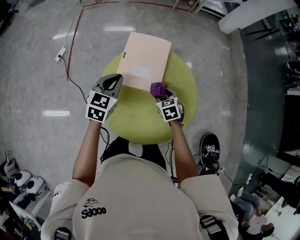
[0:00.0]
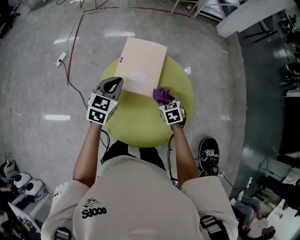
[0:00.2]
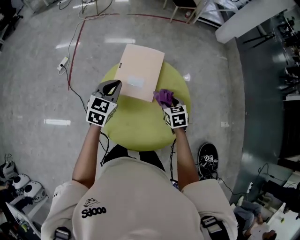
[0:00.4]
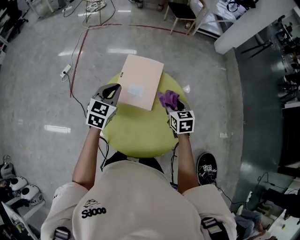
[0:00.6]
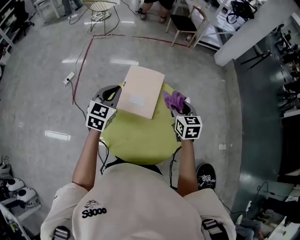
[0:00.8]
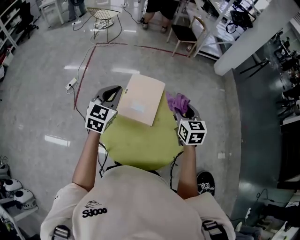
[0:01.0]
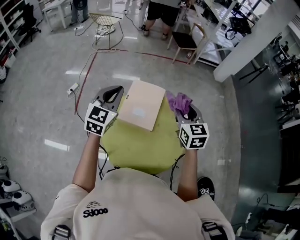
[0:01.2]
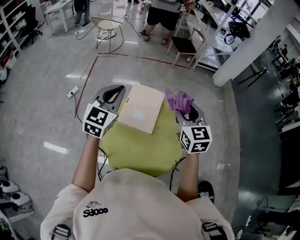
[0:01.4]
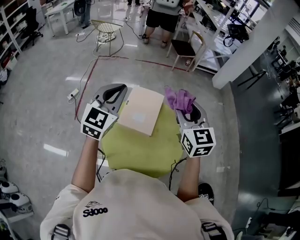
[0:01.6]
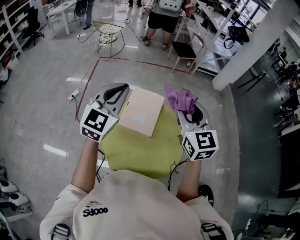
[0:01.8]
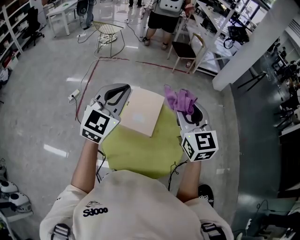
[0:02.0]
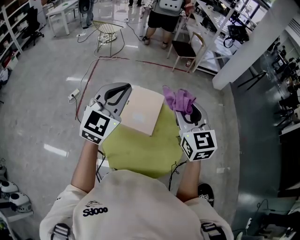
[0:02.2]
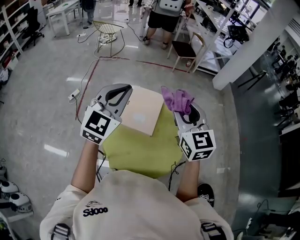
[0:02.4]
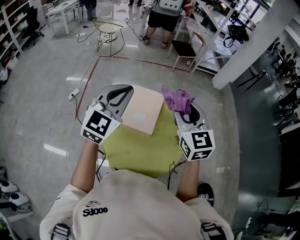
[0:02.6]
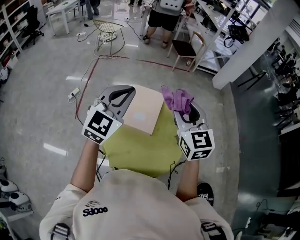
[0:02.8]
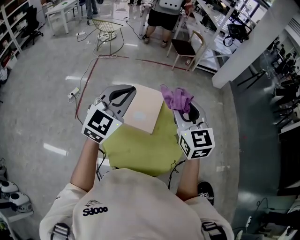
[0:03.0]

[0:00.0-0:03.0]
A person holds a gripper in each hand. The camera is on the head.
0:00.0 to 0:01.6: The right gripper goes some 40 cm upward, and points its fingers about 40 degrees further upward. Meanwhile the left gripper shifts about 25 cm upward, and swivels about 30 degrees.
0:01.6 to 0:03.0: The left gripper shifts by roughly 5 cm.

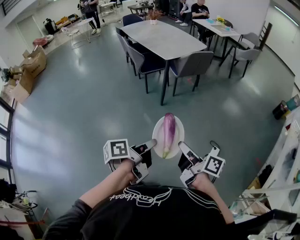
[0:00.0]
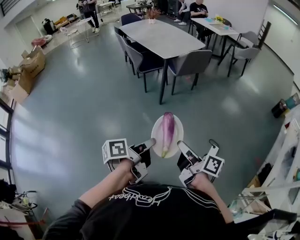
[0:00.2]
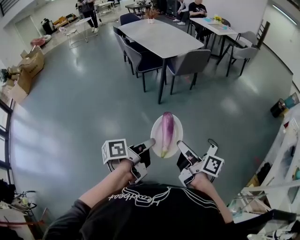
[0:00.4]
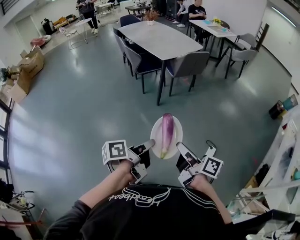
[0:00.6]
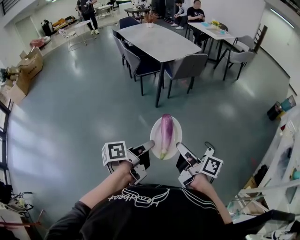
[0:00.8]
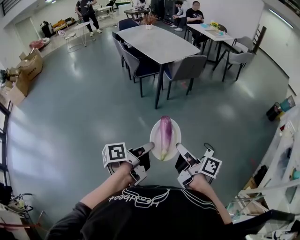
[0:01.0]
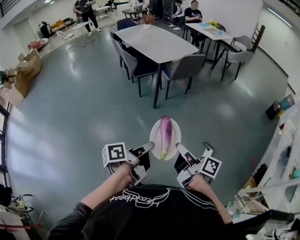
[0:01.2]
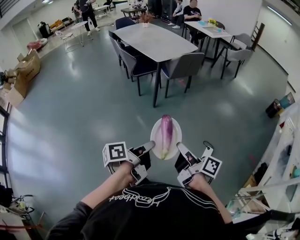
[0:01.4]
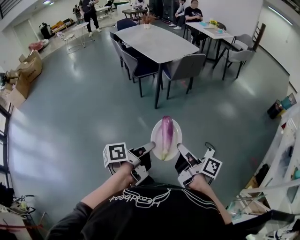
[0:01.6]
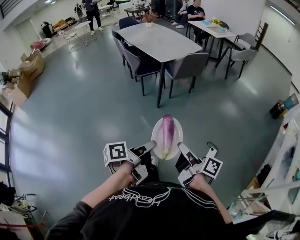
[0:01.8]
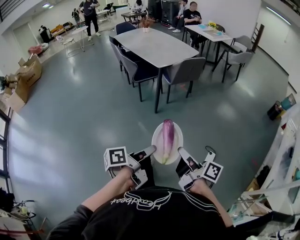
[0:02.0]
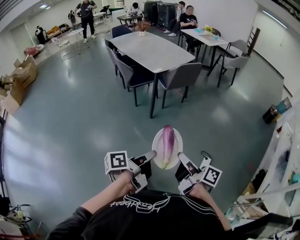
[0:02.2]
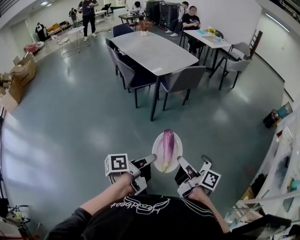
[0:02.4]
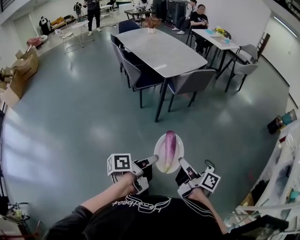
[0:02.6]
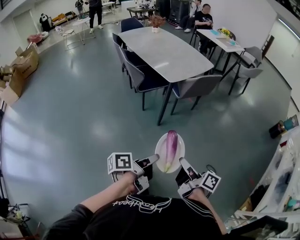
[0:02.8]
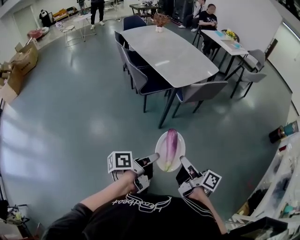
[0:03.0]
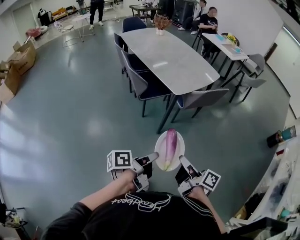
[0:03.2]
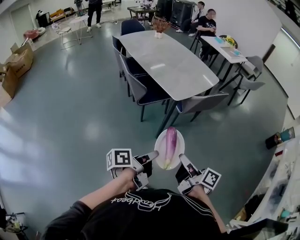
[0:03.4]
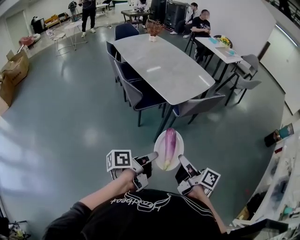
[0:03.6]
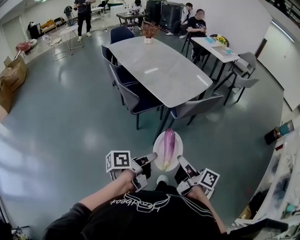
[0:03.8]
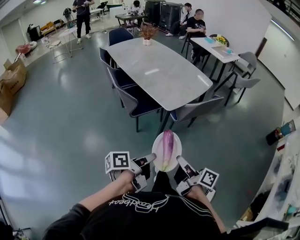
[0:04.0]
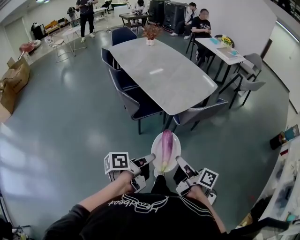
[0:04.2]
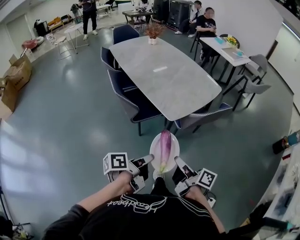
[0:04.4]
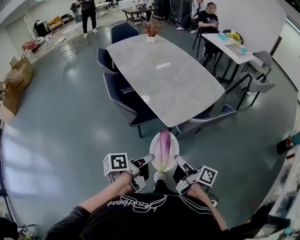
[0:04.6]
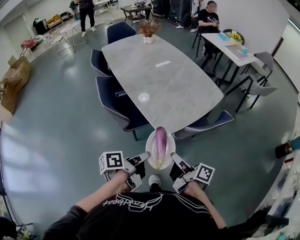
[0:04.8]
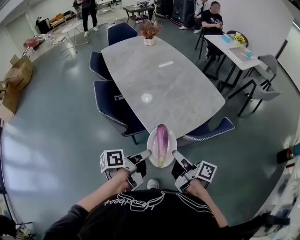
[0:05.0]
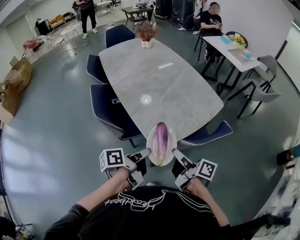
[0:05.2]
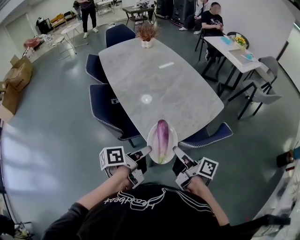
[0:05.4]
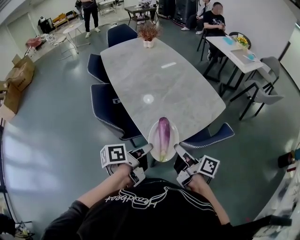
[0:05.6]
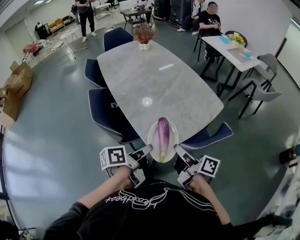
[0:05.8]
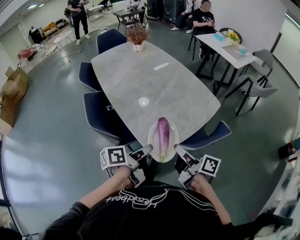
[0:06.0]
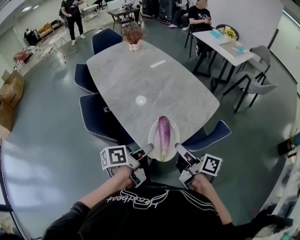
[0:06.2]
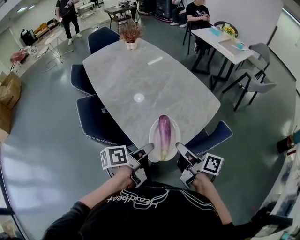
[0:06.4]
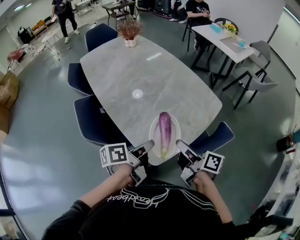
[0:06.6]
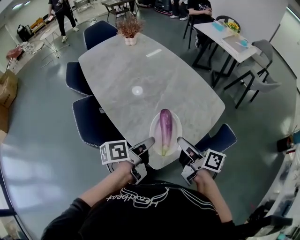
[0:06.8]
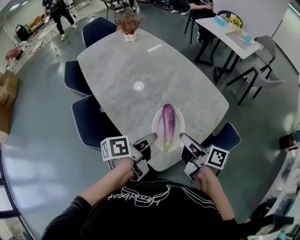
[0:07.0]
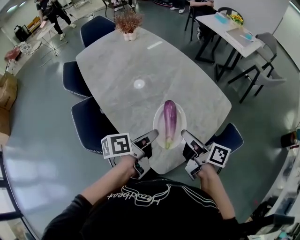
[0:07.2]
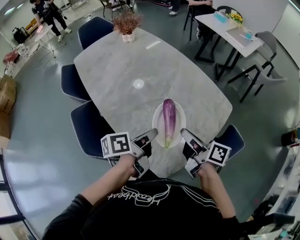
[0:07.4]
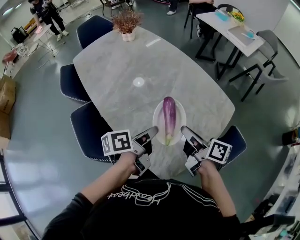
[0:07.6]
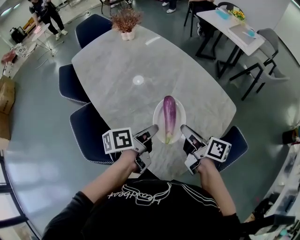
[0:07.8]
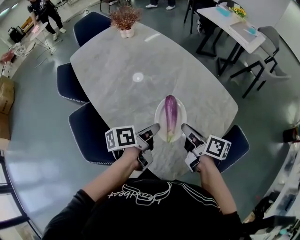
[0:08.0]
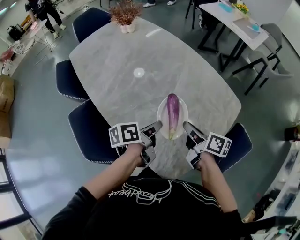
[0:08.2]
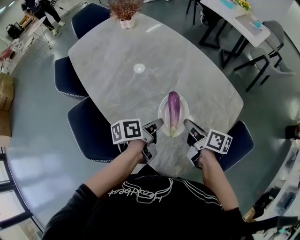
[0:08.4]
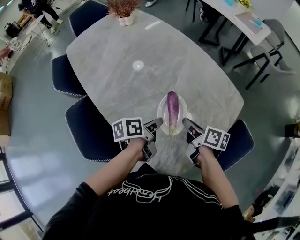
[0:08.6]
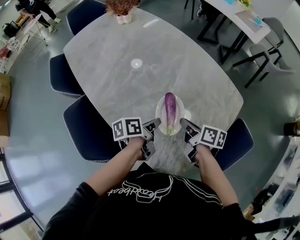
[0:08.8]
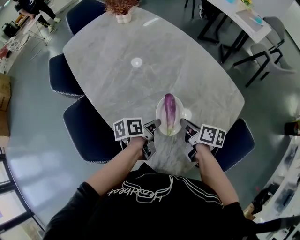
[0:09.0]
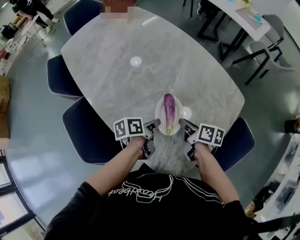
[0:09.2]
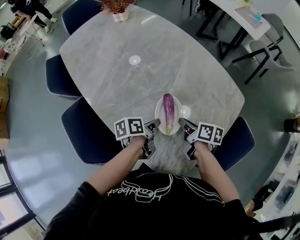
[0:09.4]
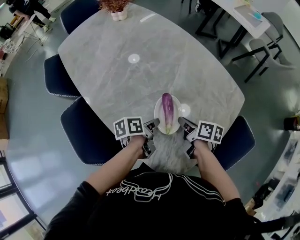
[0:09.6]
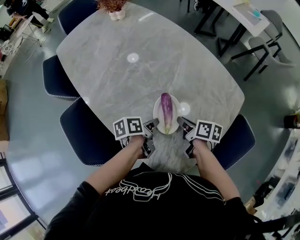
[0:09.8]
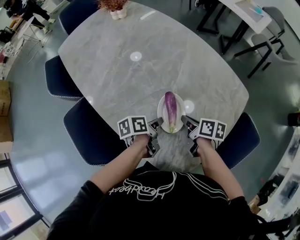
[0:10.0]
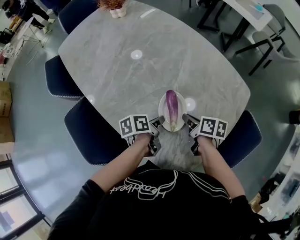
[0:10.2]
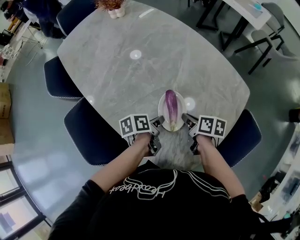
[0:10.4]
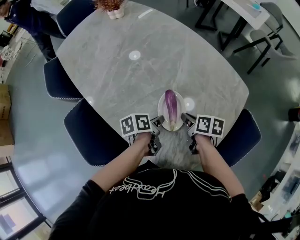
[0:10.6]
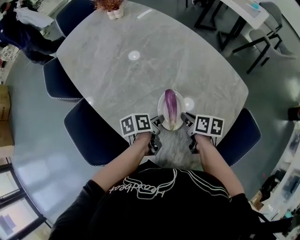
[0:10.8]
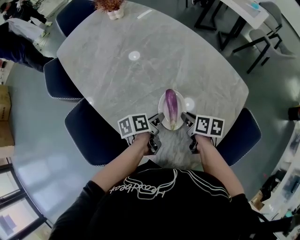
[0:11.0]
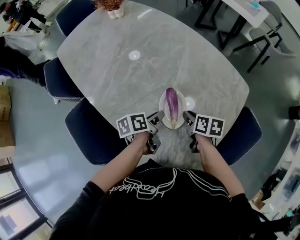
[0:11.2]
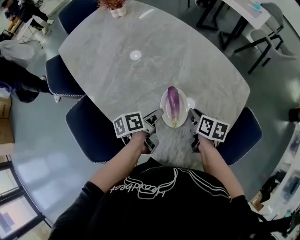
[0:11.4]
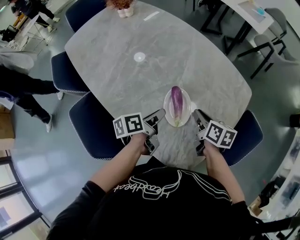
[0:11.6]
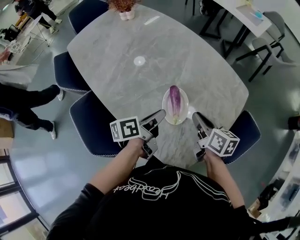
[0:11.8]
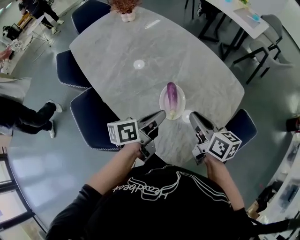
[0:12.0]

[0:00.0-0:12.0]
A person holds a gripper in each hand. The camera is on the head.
0:01.6 to 0:03.0: The right gripper moves roughly 30 cm.
0:03.0 to 0:04.4: The right gripper moves roughly 30 cm.
0:04.4 to 0:06.0: The right gripper changes place by about 30 cm.
0:06.0 to 0:07.6: The right gripper ends up approximately 25 cm from where it was.
0:07.6 to 0:09.0: The right gripper moves downward, about 15 cm, and changes its angle by some 20 degrees.
0:10.4 to 0:12.0: The right gripper heads upward, covering approximately 15 cm, and changes its angle by roughly 30 degrees.

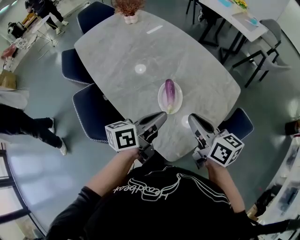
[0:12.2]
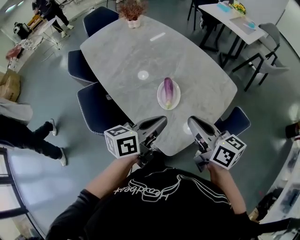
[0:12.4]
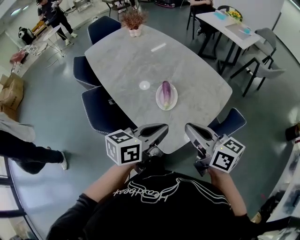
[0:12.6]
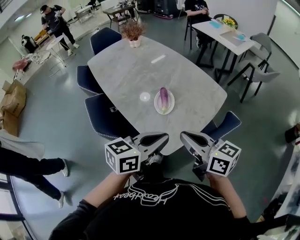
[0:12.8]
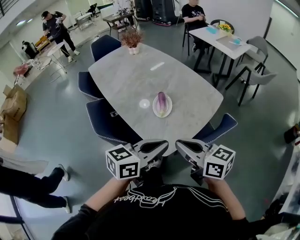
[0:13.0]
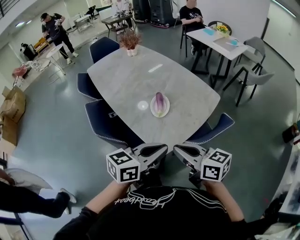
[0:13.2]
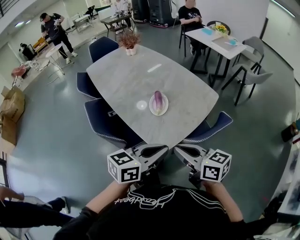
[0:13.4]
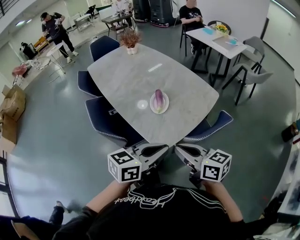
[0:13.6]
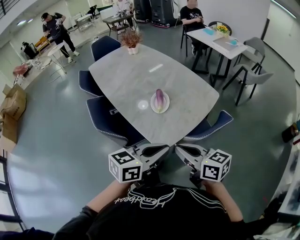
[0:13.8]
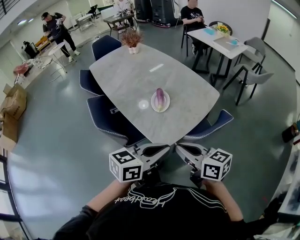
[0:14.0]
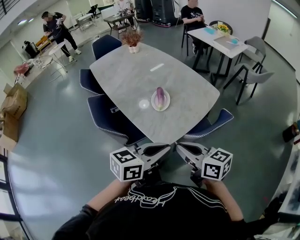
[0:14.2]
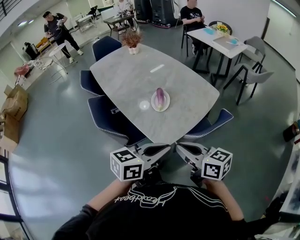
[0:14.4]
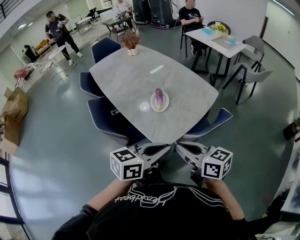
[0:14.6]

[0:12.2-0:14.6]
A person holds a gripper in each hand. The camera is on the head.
0:12.2 to 0:13.4: The right gripper moves some 25 cm.

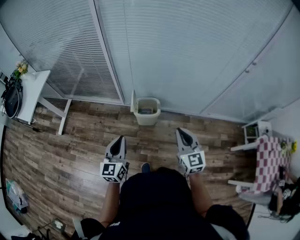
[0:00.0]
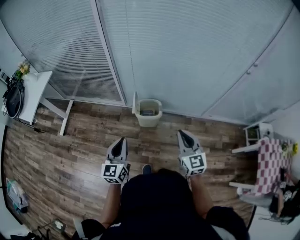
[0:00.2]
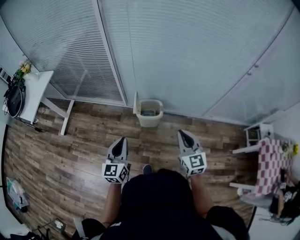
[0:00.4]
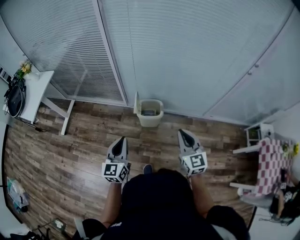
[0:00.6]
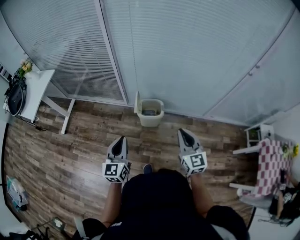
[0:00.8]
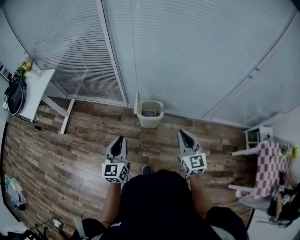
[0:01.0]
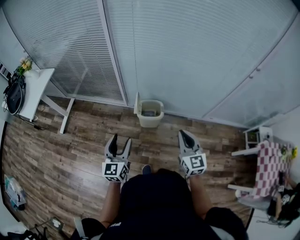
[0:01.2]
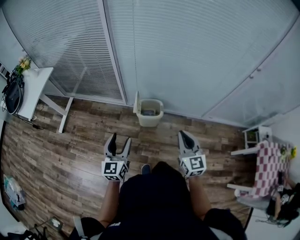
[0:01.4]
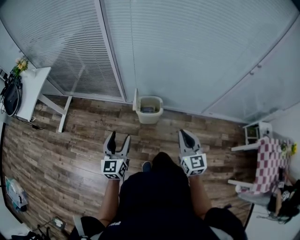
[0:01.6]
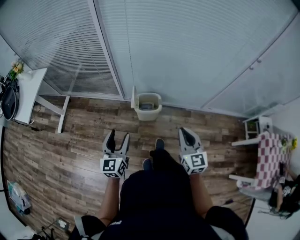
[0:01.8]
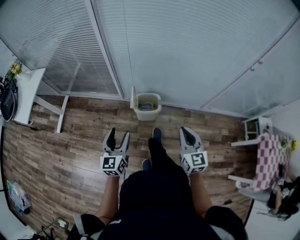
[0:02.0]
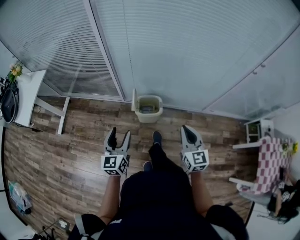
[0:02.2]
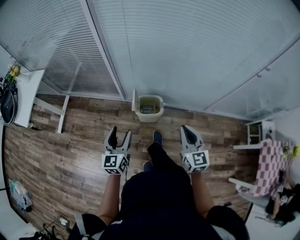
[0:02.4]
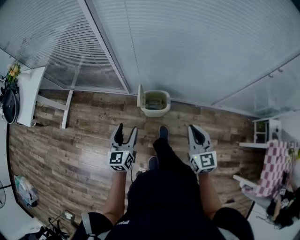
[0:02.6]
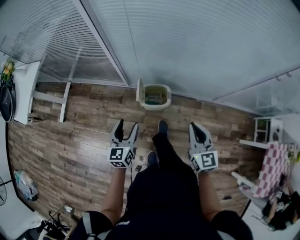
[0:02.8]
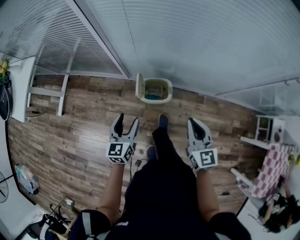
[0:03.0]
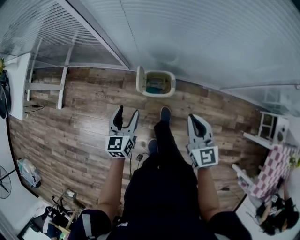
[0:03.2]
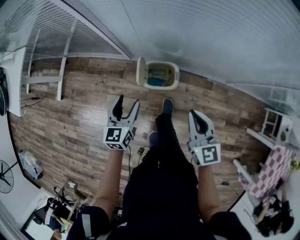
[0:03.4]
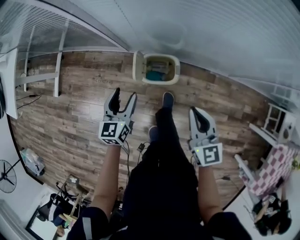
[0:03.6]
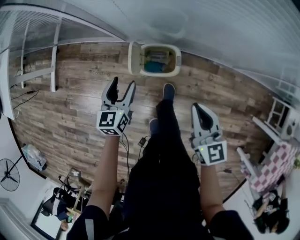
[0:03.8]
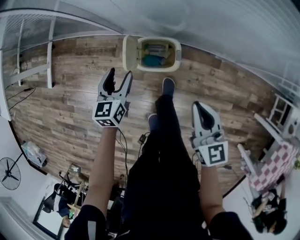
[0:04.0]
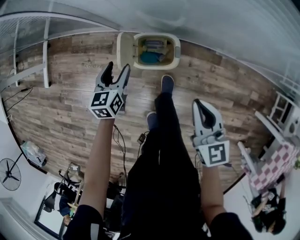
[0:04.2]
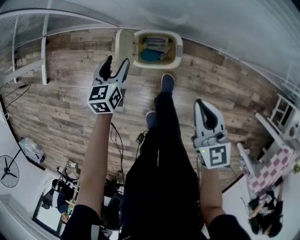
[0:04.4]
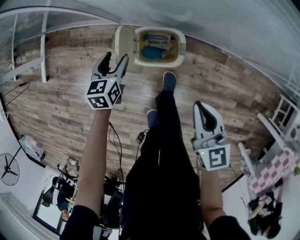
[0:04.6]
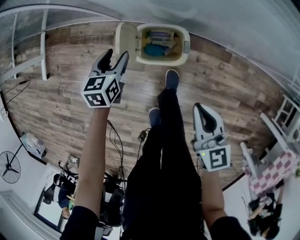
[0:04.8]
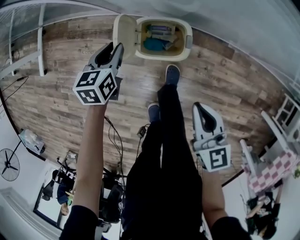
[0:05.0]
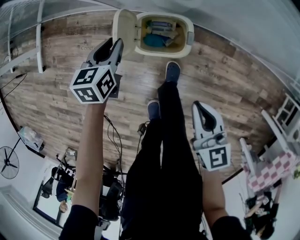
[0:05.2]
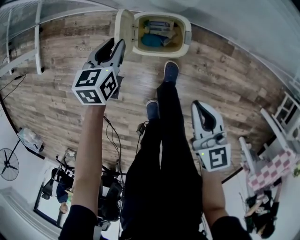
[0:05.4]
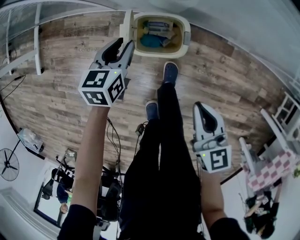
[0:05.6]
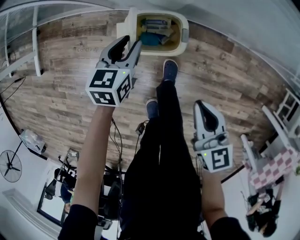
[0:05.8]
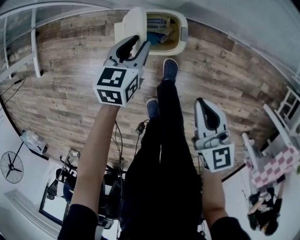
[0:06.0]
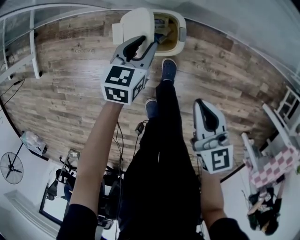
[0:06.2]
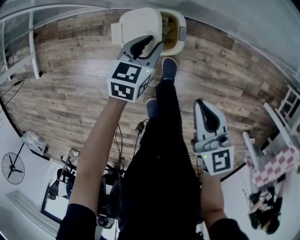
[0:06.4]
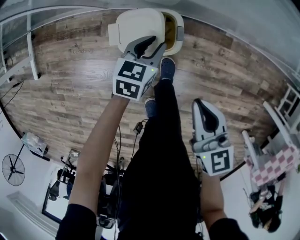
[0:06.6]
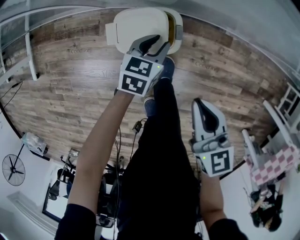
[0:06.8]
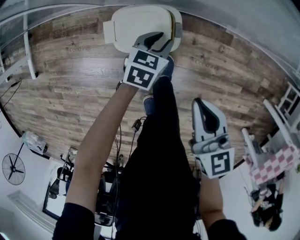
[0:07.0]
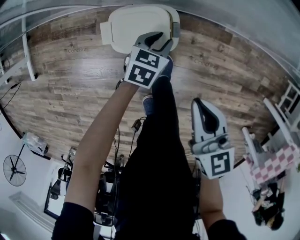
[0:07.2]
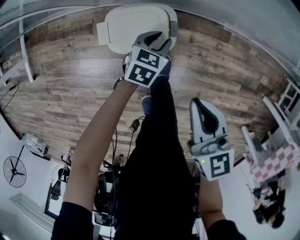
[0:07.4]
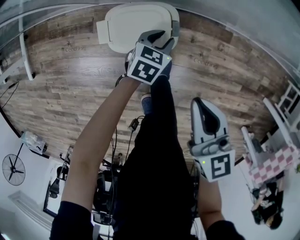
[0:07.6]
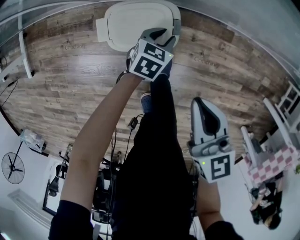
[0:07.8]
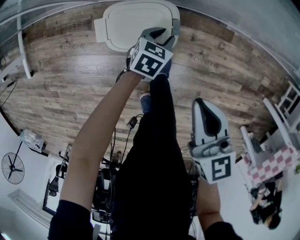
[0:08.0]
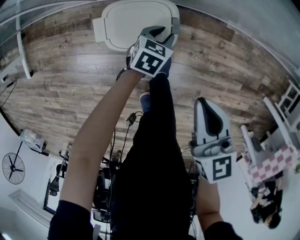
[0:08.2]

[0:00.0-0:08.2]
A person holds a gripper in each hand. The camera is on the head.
0:00.0 to 0:01.6: The left gripper opens its fingers.
0:01.6 to 0:03.2: Both grippers travel together forward and downward, some 20 cm.
0:03.2 to 0:05.0: The right gripper heads downward, covering some 20 cm, and turns by about 20 degrees, while the left gripper moves downward and forward, approximately 30 cm, turns by roughly 20 degrees, and closes its fingers.
0:05.0 to 0:06.6: The left gripper shifts some 20 cm to the right, and swivels roughly 20 degrees.
0:06.6 to 0:08.2: The left gripper shifts some 15 cm downward and to the right.
